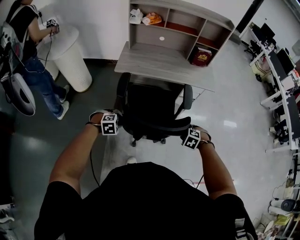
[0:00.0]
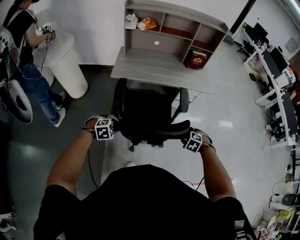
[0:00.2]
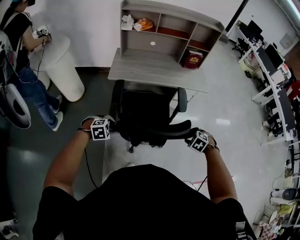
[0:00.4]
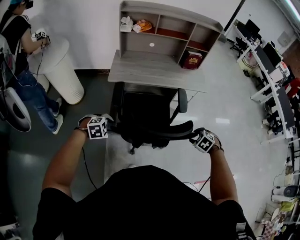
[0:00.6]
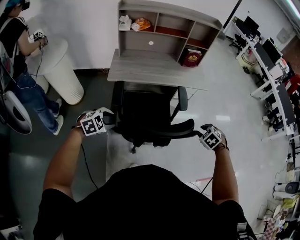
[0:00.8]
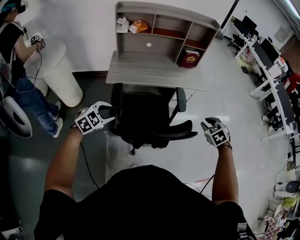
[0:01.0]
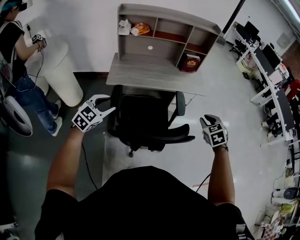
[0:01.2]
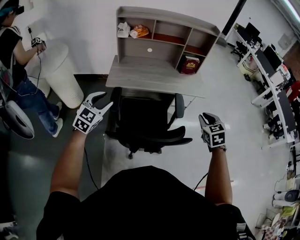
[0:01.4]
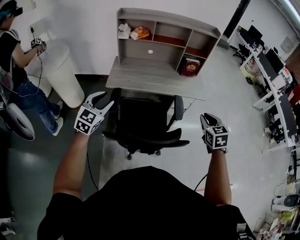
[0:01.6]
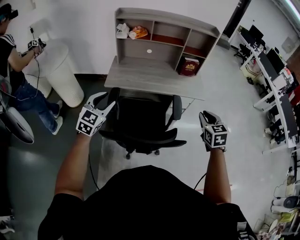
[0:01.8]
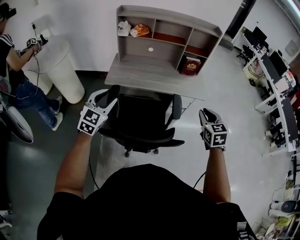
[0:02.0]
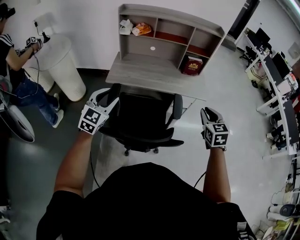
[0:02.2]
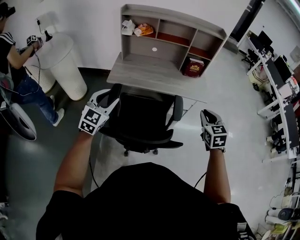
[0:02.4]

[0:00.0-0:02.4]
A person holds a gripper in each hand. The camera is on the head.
0:00.0 to 0:01.2: The left gripper heads upward, covering roughly 20 cm, and tilts its fingers some 40 degrees upward. The right gripper heads upward and forward, covering some 25 cm, and tips its fingers upward by roughly 30 degrees.
0:01.2 to 0:02.4: The right gripper travels forward and upward by approximately 10 cm, and changes its angle by approximately 20 degrees; the left gripper moves to the right and upward, about 10 cm, and turns by approximately 20 degrees.

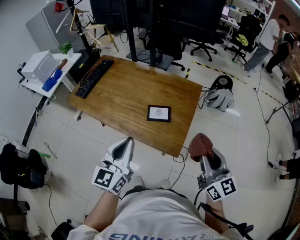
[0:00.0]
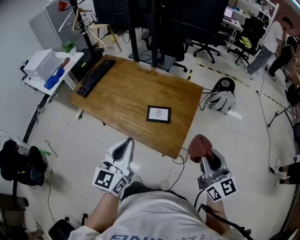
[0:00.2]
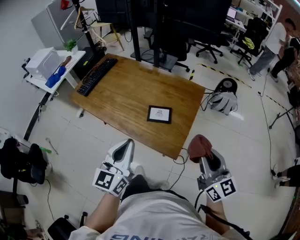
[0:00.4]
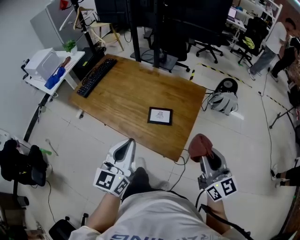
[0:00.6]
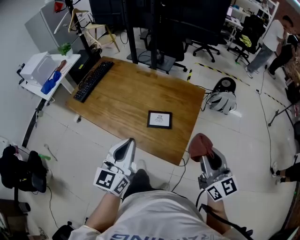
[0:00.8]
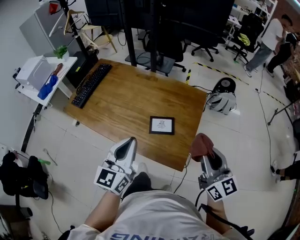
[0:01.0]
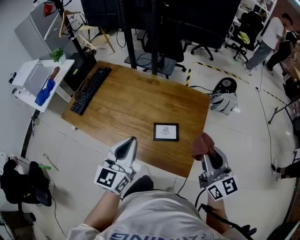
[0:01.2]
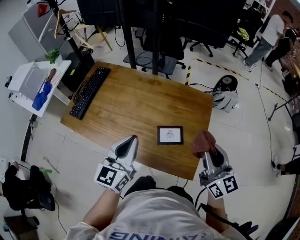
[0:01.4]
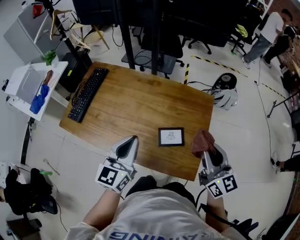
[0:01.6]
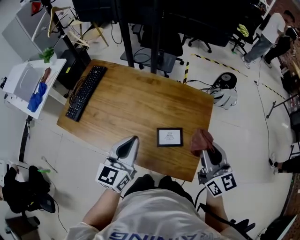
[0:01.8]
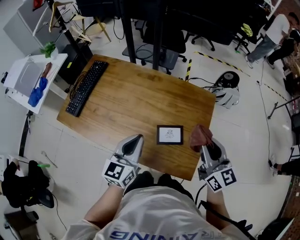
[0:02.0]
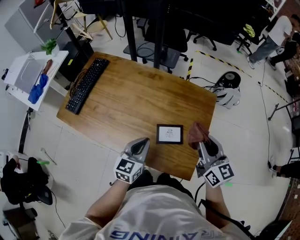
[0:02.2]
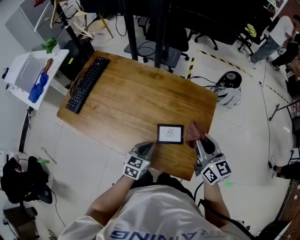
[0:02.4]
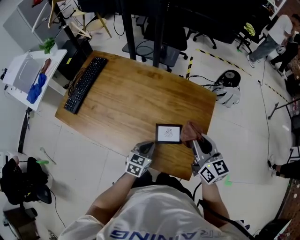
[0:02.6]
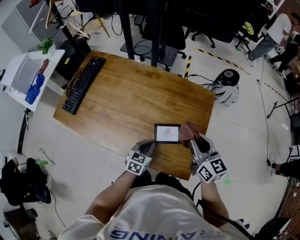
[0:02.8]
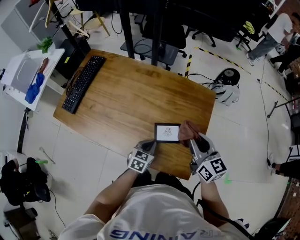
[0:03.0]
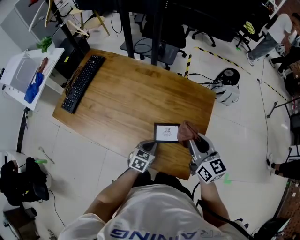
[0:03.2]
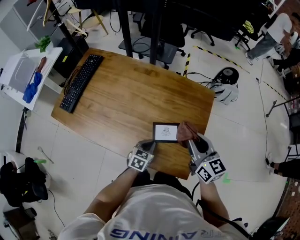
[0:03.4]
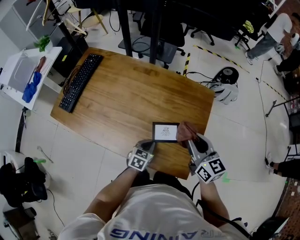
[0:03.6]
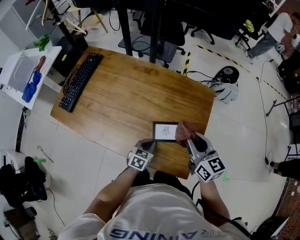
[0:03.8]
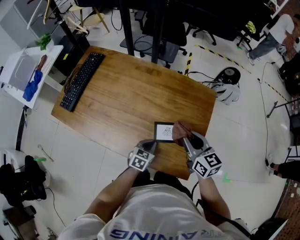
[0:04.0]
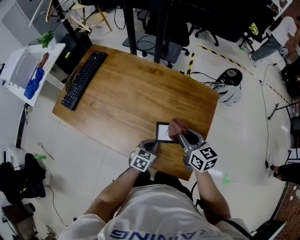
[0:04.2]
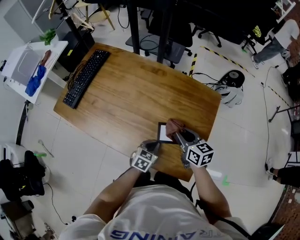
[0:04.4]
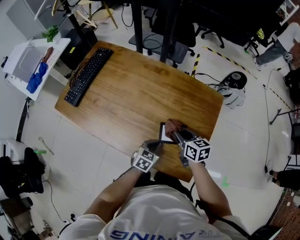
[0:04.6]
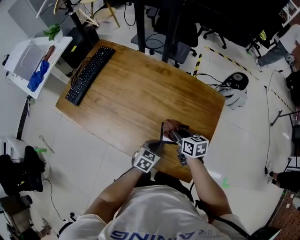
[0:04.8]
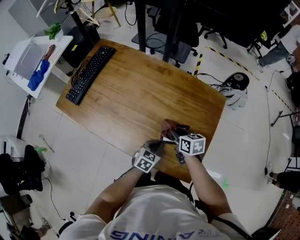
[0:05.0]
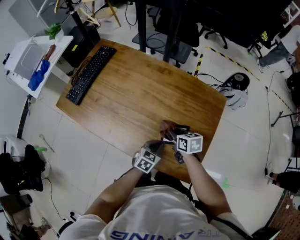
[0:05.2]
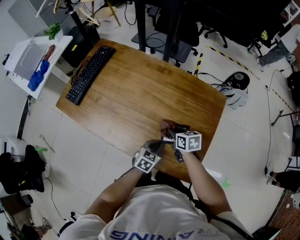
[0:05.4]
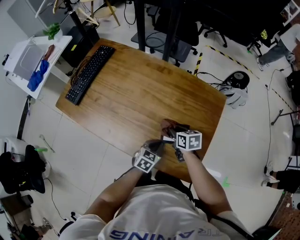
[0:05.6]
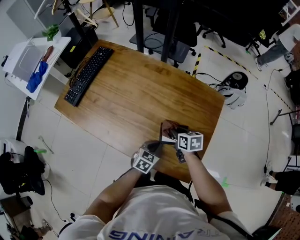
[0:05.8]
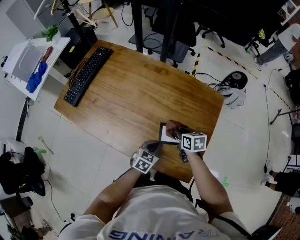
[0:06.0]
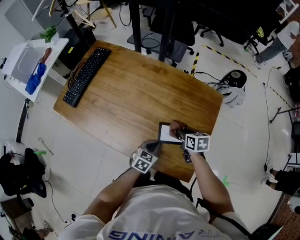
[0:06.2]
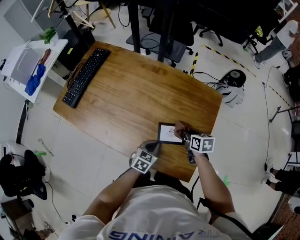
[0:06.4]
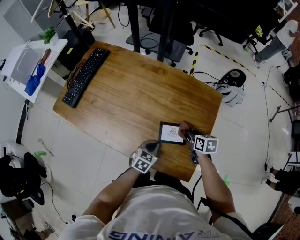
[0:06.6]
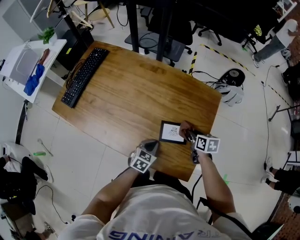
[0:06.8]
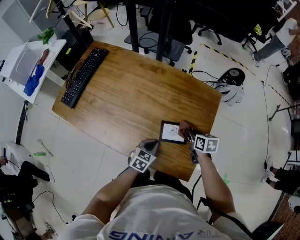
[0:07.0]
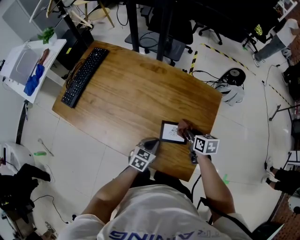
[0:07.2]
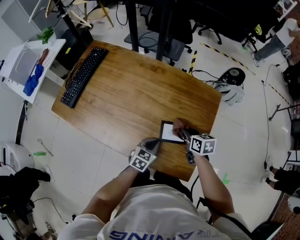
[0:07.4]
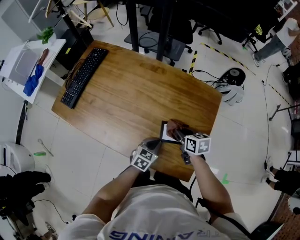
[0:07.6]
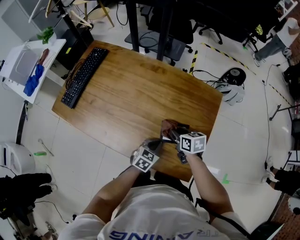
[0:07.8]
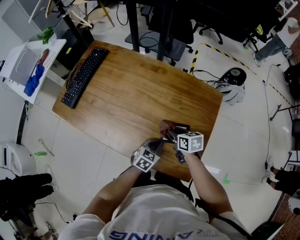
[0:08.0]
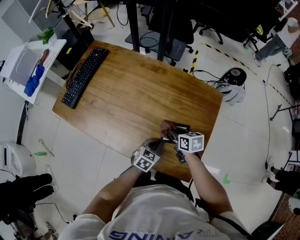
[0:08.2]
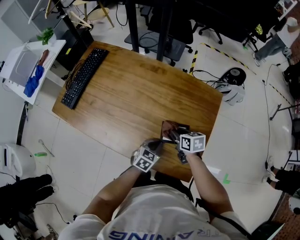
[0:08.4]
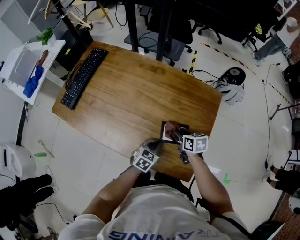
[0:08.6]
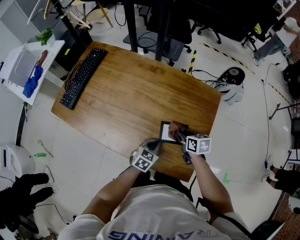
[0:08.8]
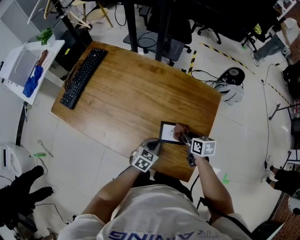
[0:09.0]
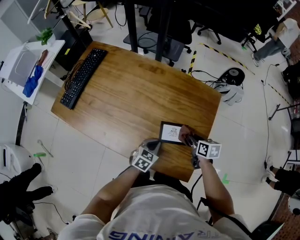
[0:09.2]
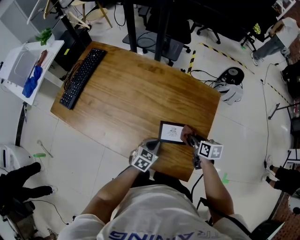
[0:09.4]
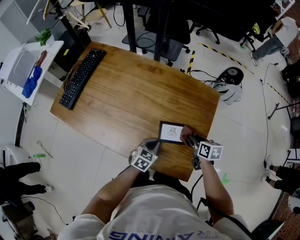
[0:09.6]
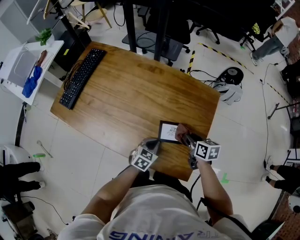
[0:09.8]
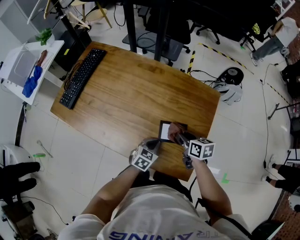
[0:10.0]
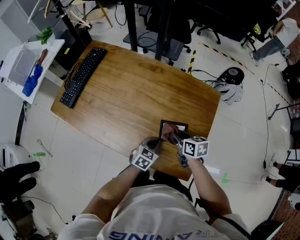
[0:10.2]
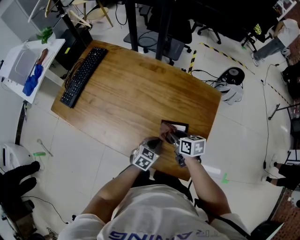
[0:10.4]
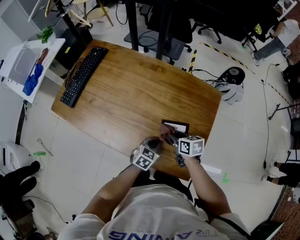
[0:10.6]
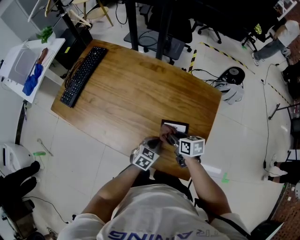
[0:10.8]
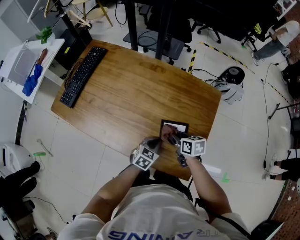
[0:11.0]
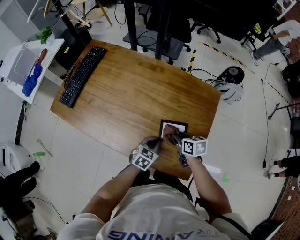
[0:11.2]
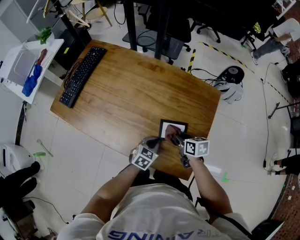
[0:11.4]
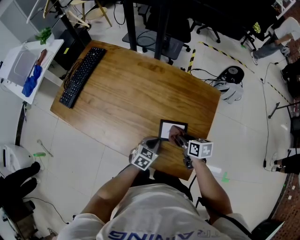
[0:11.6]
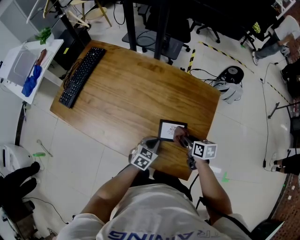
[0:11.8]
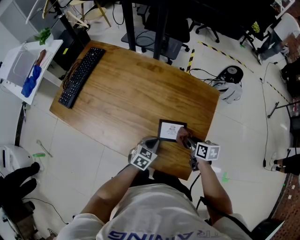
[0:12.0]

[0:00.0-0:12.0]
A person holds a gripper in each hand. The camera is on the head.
0:00.0 to 0:01.6: The left gripper shifts about 20 cm forward. The right gripper shifts approximately 20 cm forward and to the left.
0:01.6 to 0:03.0: The right gripper moves downward and forward, about 10 cm. The left gripper goes about 30 cm downward, and tips its fingers downward by some 30 degrees.
0:03.0 to 0:04.4: The right gripper travels downward and to the left by roughly 10 cm.
0:04.4 to 0:06.0: The right gripper goes roughly 10 cm downward, and changes its angle by about 20 degrees.
0:06.0 to 0:07.6: The right gripper reaches about 10 cm to the right, then returns.
0:07.6 to 0:09.0: The right gripper ends up roughly 5 cm from where it was.
0:09.0 to 0:10.4: The right gripper moves to the left, some 10 cm.
0:10.4 to 0:12.0: The right gripper travels to the right by some 10 cm.

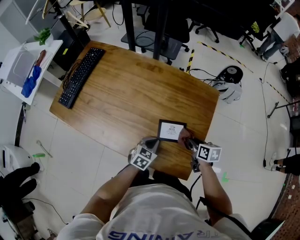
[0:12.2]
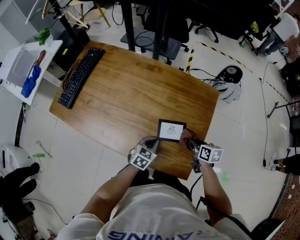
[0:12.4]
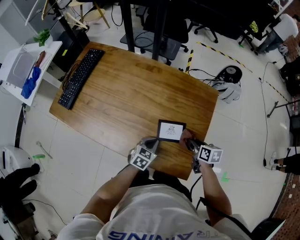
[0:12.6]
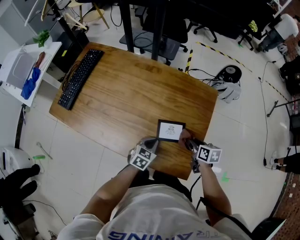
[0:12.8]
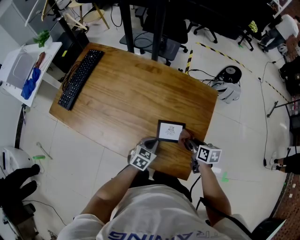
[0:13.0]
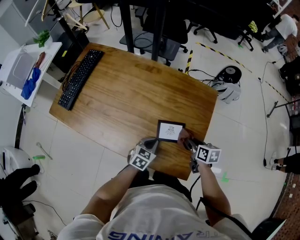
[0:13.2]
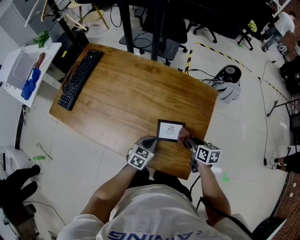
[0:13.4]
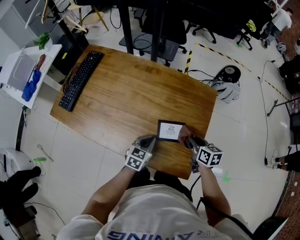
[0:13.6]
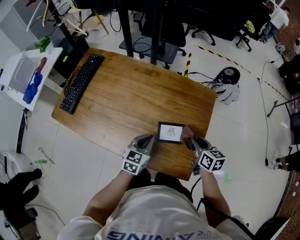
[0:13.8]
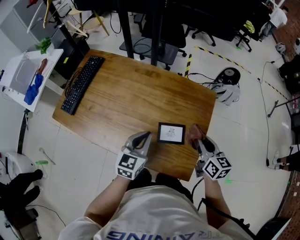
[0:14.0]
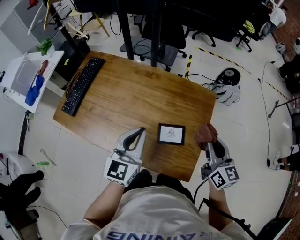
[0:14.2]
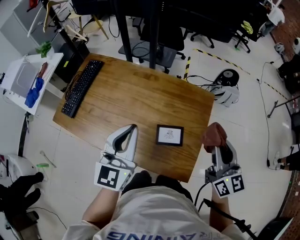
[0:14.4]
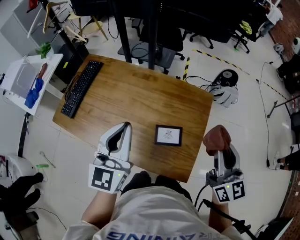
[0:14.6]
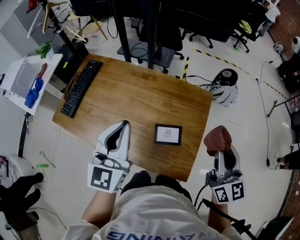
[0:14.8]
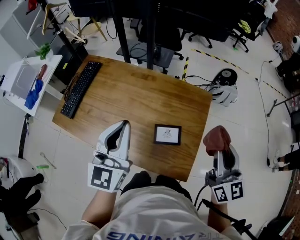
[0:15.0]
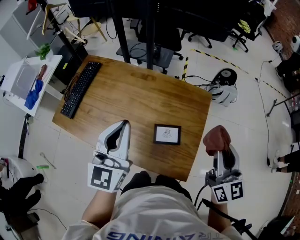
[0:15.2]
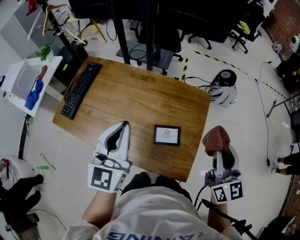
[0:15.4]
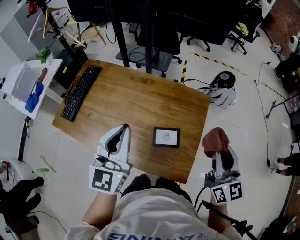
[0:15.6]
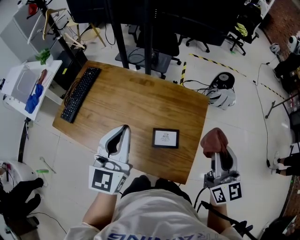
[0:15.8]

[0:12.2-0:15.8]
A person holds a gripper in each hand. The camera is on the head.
0:12.2 to 0:14.0: The grippers both shift upward by about 15 cm. The left gripper swivels approximately 30 degrees. Meanwhile the right gripper turns by about 30 degrees.
0:14.0 to 0:15.8: The grippers both shift upward by about 20 cm. The right gripper changes its angle by some 30 degrees, while the left gripper rotates about 20 degrees.

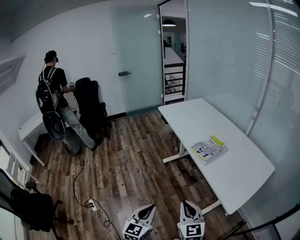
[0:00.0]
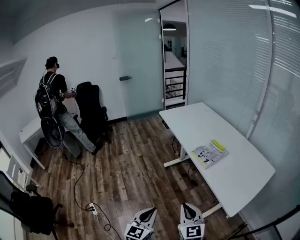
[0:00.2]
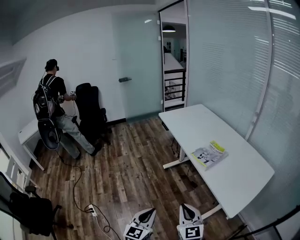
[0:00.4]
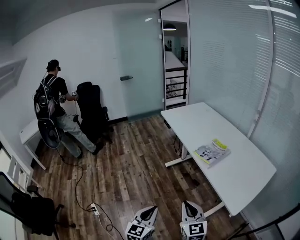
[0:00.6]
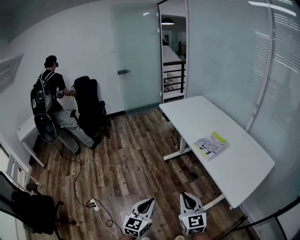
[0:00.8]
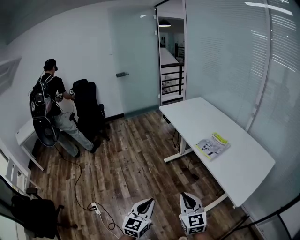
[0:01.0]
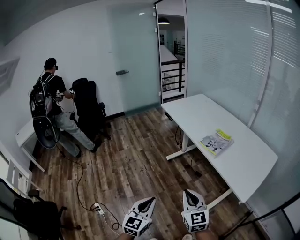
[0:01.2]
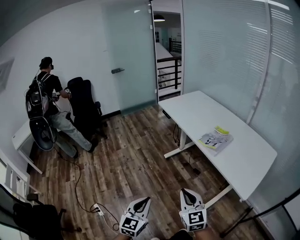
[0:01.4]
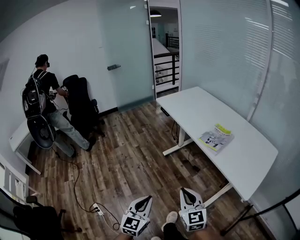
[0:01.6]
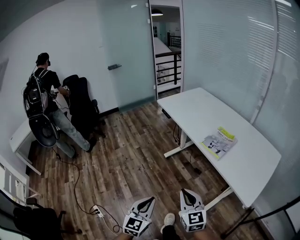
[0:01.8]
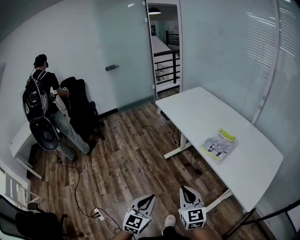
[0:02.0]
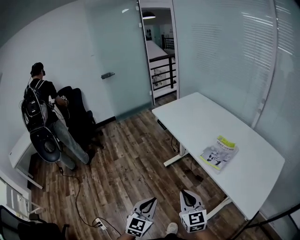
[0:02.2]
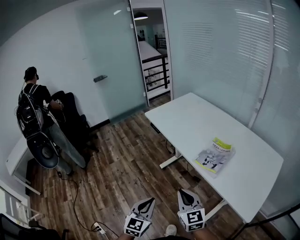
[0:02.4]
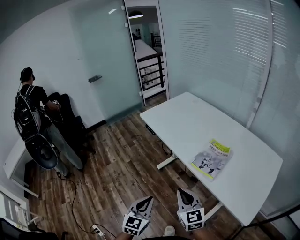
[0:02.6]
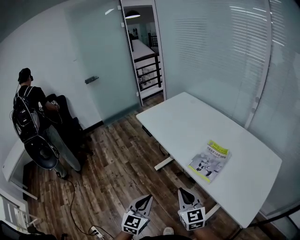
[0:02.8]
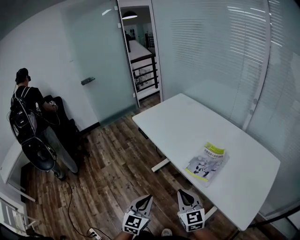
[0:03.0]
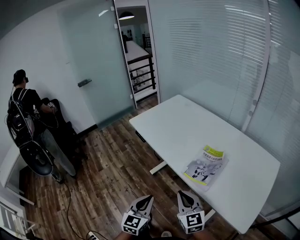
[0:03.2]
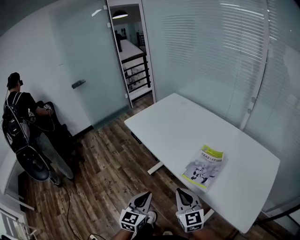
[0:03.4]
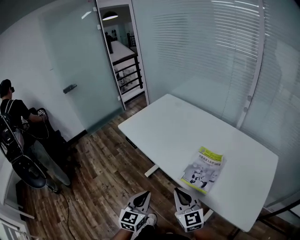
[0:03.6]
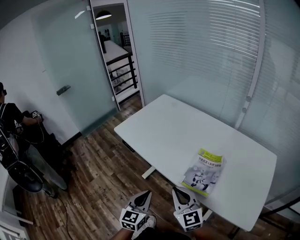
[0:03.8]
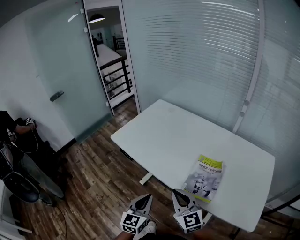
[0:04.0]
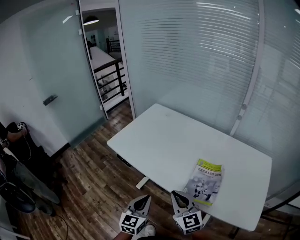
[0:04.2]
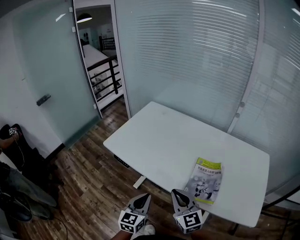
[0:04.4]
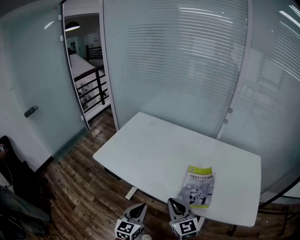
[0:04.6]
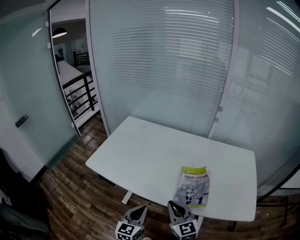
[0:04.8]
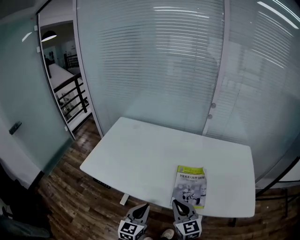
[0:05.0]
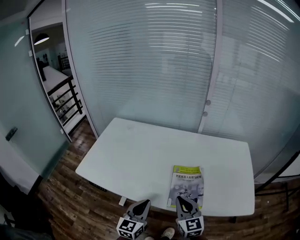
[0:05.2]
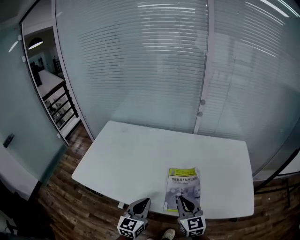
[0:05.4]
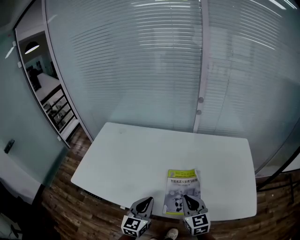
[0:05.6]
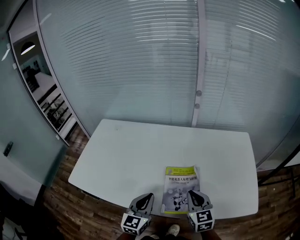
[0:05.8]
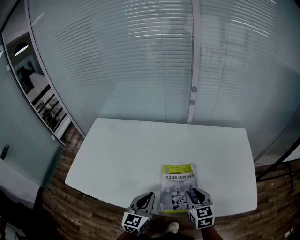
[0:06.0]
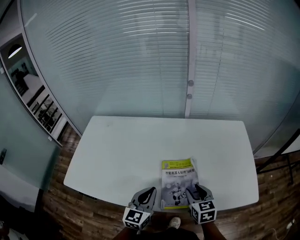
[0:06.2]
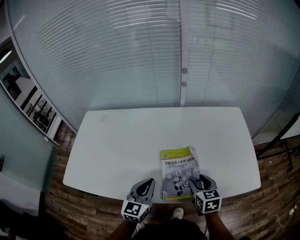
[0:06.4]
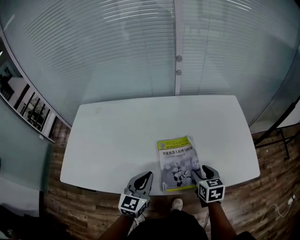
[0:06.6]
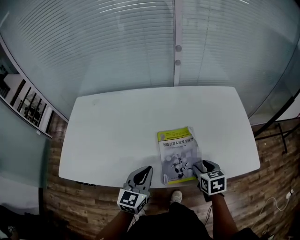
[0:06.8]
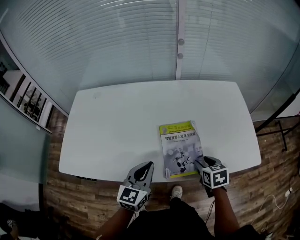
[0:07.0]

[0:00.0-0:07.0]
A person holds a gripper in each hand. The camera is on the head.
0:00.0 to 0:01.4: Both grippers travel together to the left, about 10 cm.
0:01.4 to 0:02.8: The grippers both shift forward by roughly 25 cm.
0:02.8 to 0:04.2: Both grippers travel together forward, approximately 20 cm.
0:04.2 to 0:05.6: The right gripper moves some 20 cm, and swivels about 40 degrees. The left gripper ends up some 15 cm from where it was, and swivels approximately 20 degrees.
0:05.6 to 0:07.0: The right gripper moves downward and to the right, roughly 15 cm, tilts its fingers approximately 30 degrees downward, and opens its fingers.
